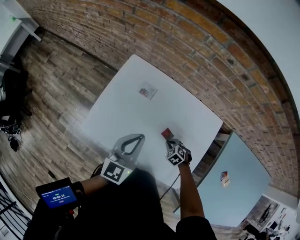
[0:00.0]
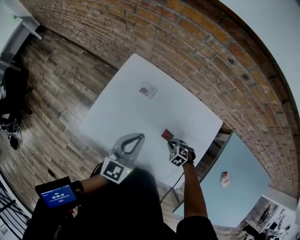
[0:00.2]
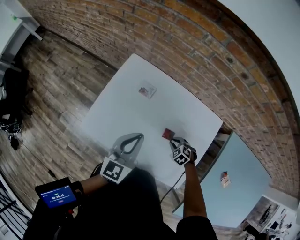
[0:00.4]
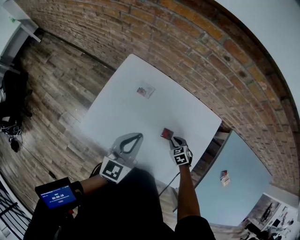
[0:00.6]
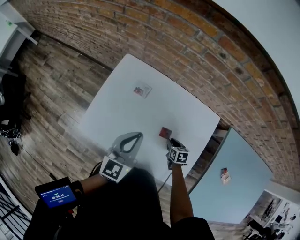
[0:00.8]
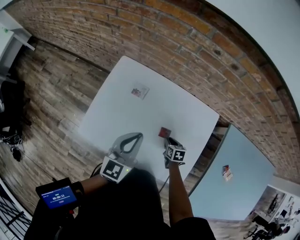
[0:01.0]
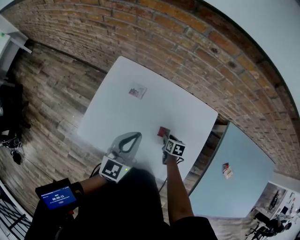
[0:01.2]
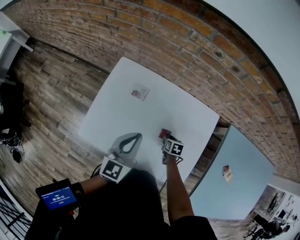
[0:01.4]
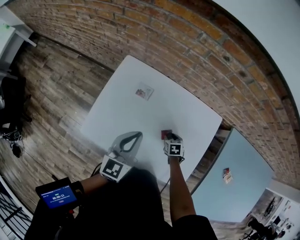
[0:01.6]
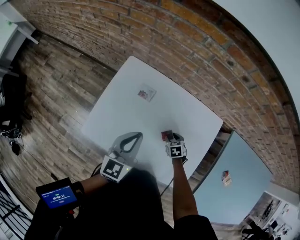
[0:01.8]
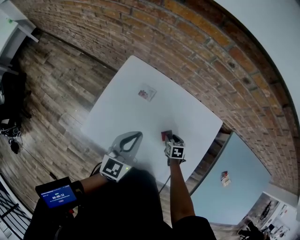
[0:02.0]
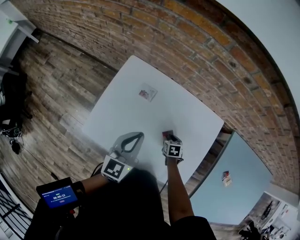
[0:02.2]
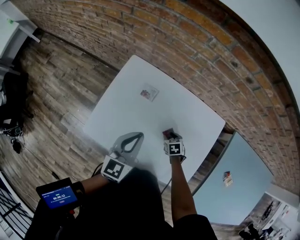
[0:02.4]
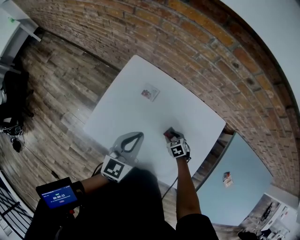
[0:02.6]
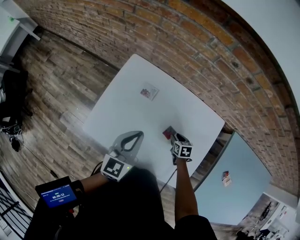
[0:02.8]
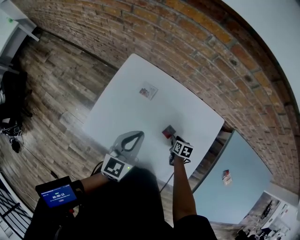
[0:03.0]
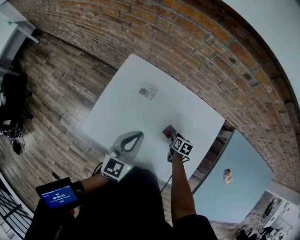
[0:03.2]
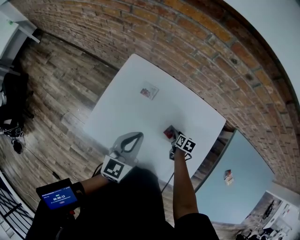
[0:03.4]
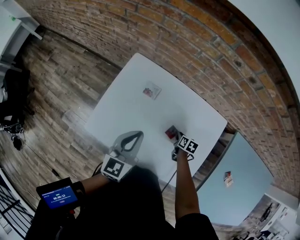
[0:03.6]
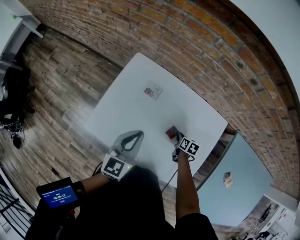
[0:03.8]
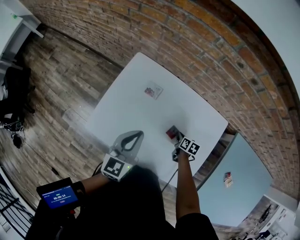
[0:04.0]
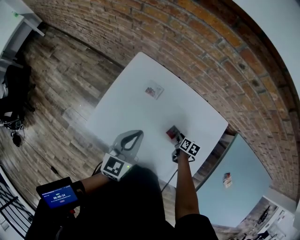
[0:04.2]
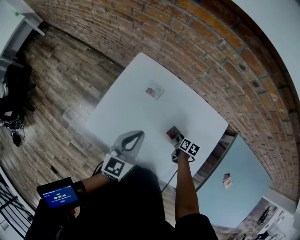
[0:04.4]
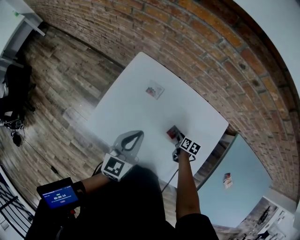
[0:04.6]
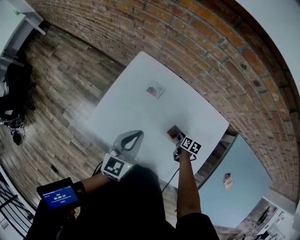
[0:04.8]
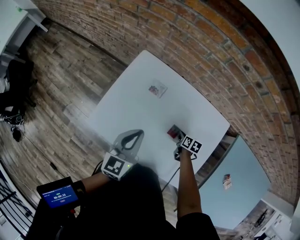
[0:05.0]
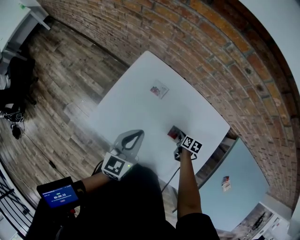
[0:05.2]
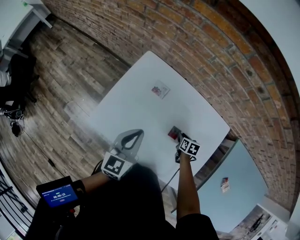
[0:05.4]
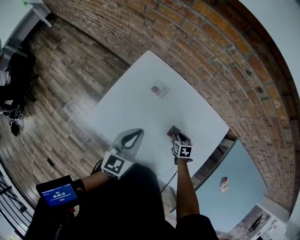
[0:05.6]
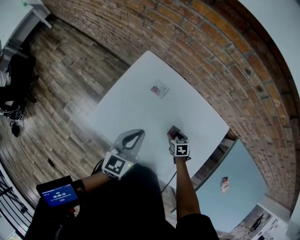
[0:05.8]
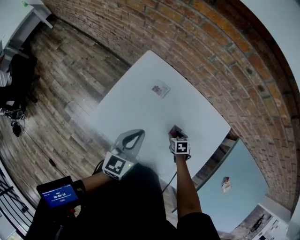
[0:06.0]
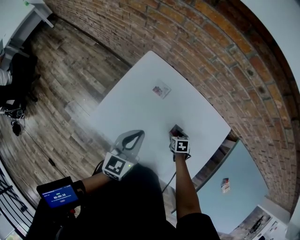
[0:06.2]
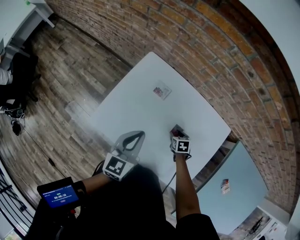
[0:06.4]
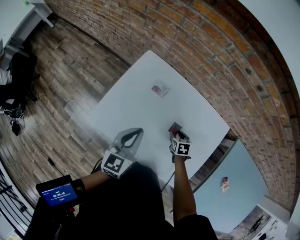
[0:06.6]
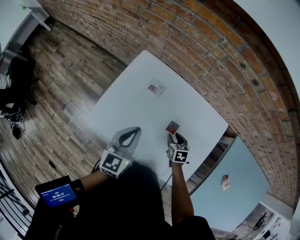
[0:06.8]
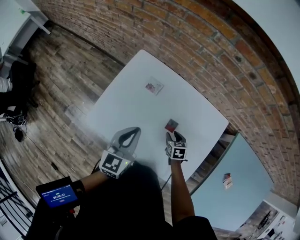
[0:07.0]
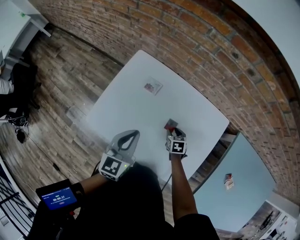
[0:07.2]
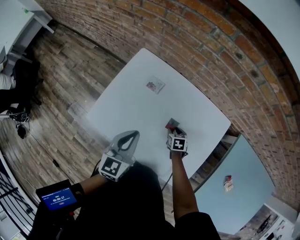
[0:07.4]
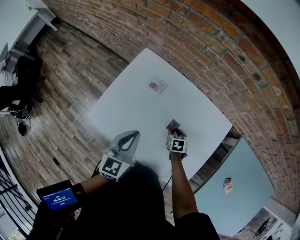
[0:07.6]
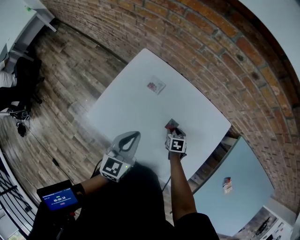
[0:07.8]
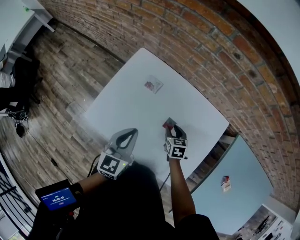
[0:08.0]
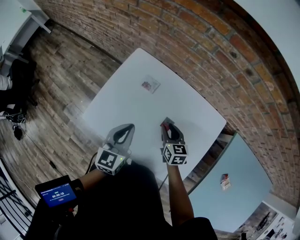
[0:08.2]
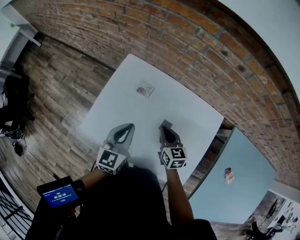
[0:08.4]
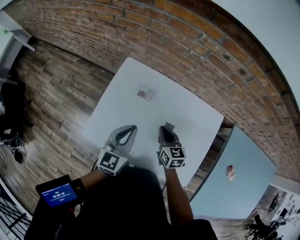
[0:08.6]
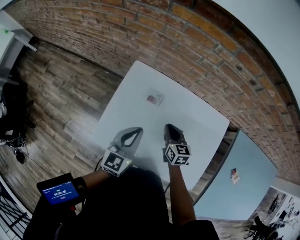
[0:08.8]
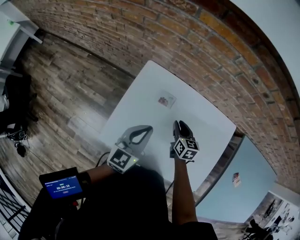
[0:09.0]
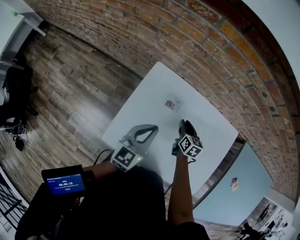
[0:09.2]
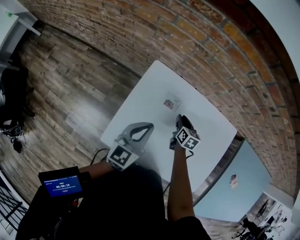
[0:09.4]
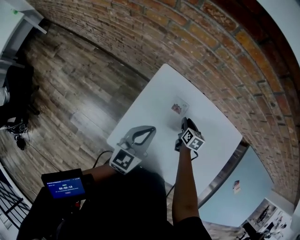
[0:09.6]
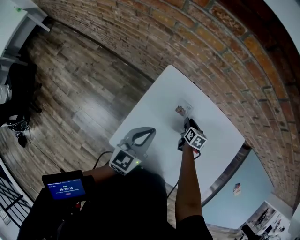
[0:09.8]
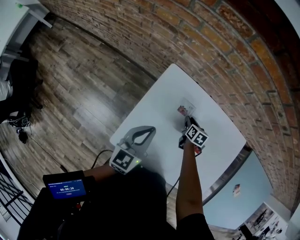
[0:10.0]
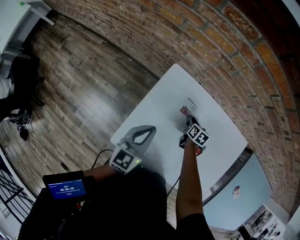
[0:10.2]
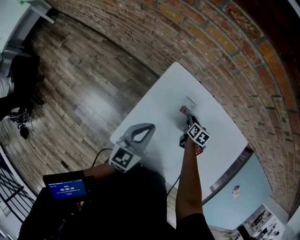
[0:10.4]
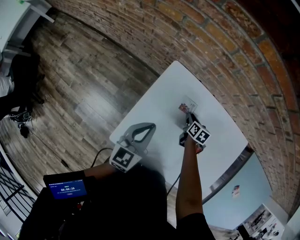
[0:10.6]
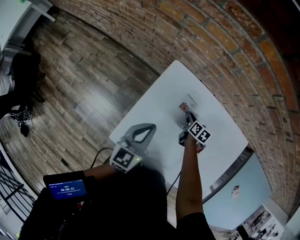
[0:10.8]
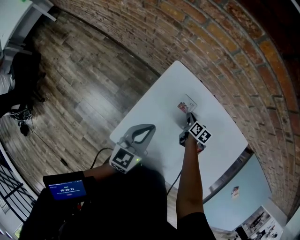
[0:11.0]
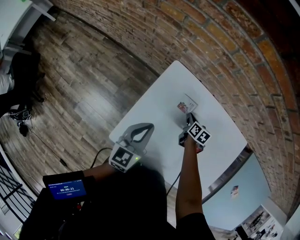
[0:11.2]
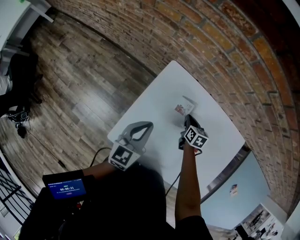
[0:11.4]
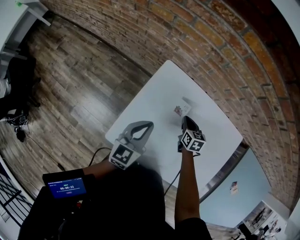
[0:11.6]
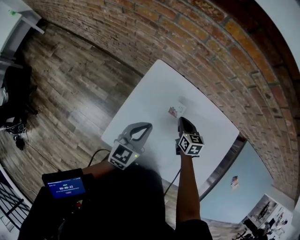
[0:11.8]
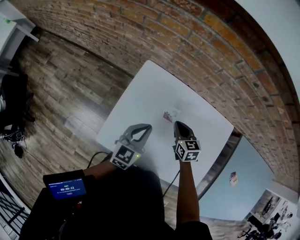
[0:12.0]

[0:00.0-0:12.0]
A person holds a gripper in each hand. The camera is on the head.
0:00.0 to 0:01.6: The right gripper shifts by about 5 cm, rotates around the line of its fingers by some 50 degrees, clockwise from behind, and opens its fingers.
0:01.6 to 0:03.0: The right gripper rotates roughly 20 degrees.
0:03.0 to 0:04.4: The grippers stay close to where they were, moving slightly.
0:04.4 to 0:06.0: The right gripper moves to the left, roughly 5 cm, turns by roughly 40 degrees, and opens its fingers.
0:06.0 to 0:07.6: There are only small adjustments of the grippers.
0:07.6 to 0:09.0: The left gripper heads forward and to the left, covering about 10 cm; the right gripper travels upward, forward and to the left by approximately 20 cm, swivels some 30 degrees, and closes, then opens again.
0:09.0 to 0:10.4: The right gripper shifts approximately 15 cm downward and forward, and swivels approximately 20 degrees; the left gripper goes approximately 10 cm to the left.
0:10.4 to 0:12.0: The left gripper travels to the right by roughly 10 cm. The right gripper shifts approximately 15 cm upward and backward, changes its angle by about 30 degrees, and closes up.

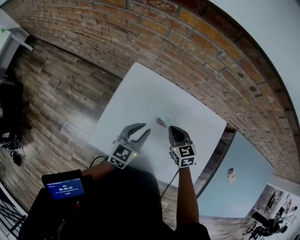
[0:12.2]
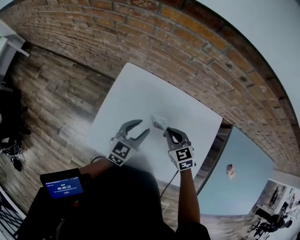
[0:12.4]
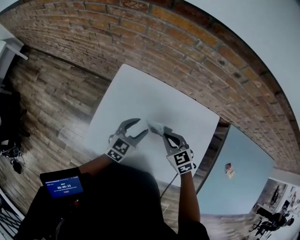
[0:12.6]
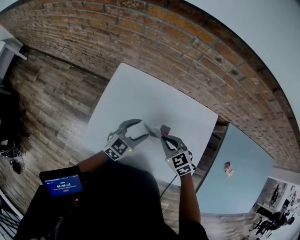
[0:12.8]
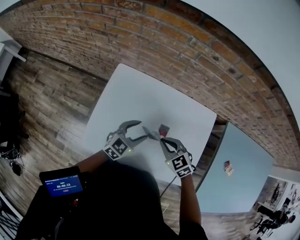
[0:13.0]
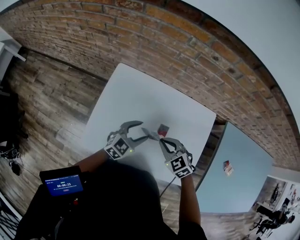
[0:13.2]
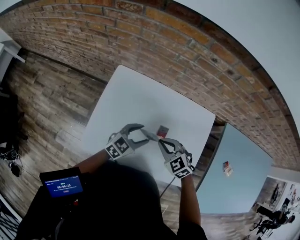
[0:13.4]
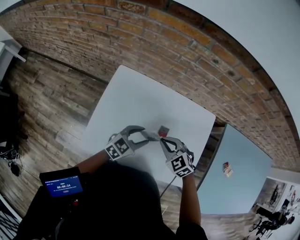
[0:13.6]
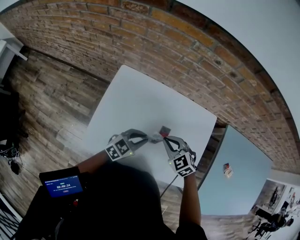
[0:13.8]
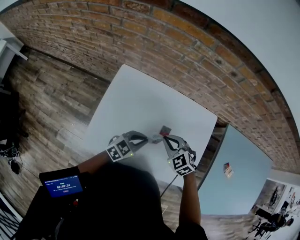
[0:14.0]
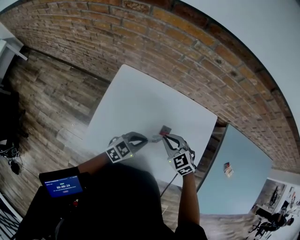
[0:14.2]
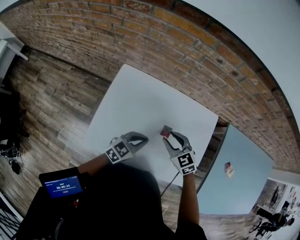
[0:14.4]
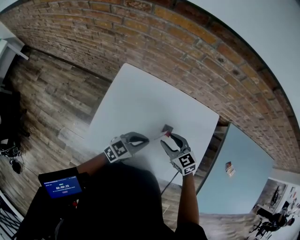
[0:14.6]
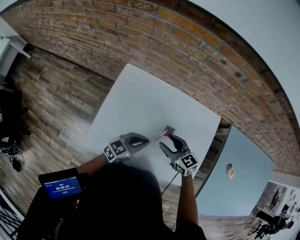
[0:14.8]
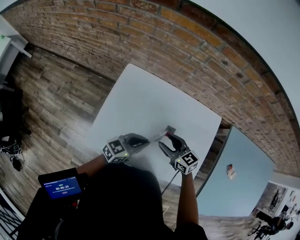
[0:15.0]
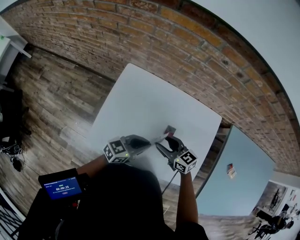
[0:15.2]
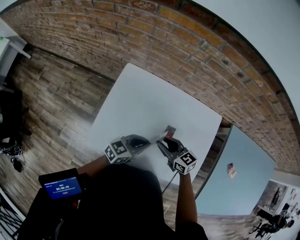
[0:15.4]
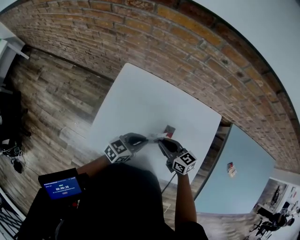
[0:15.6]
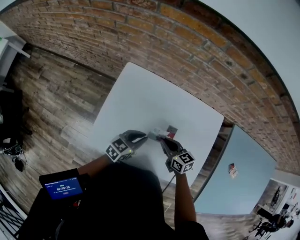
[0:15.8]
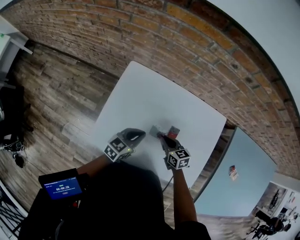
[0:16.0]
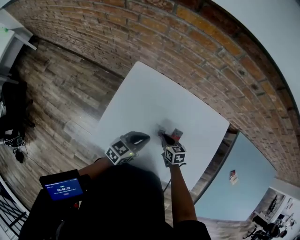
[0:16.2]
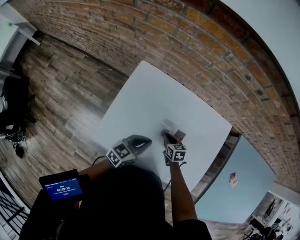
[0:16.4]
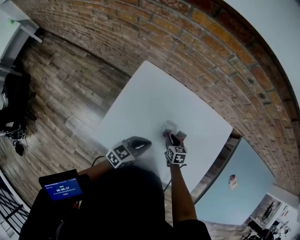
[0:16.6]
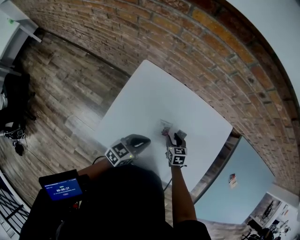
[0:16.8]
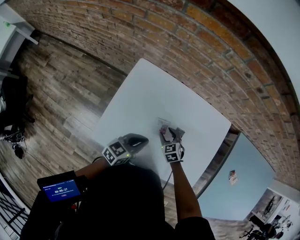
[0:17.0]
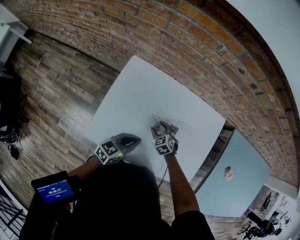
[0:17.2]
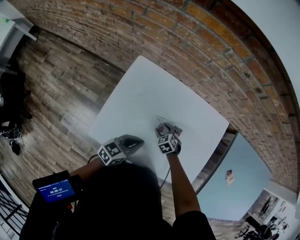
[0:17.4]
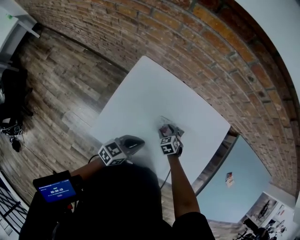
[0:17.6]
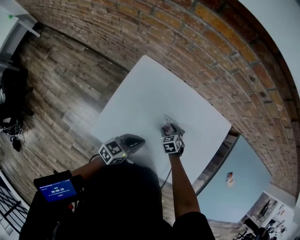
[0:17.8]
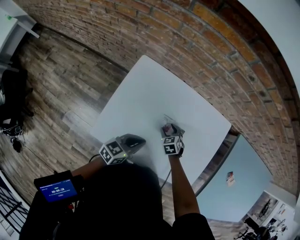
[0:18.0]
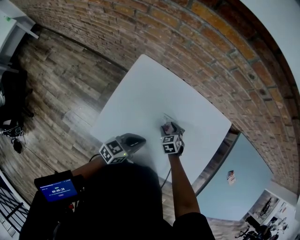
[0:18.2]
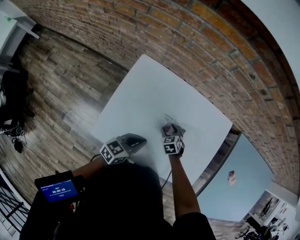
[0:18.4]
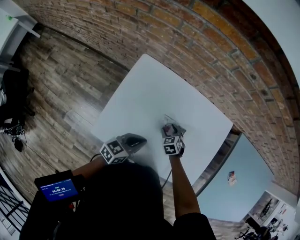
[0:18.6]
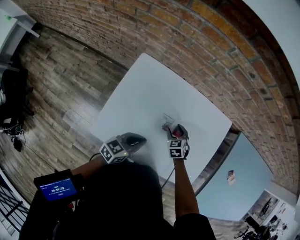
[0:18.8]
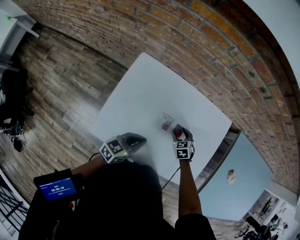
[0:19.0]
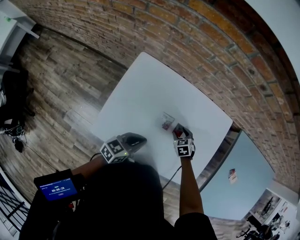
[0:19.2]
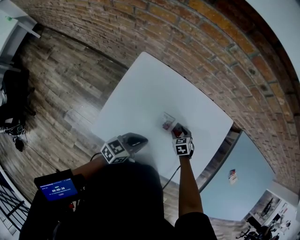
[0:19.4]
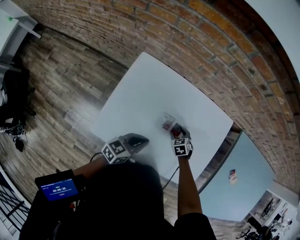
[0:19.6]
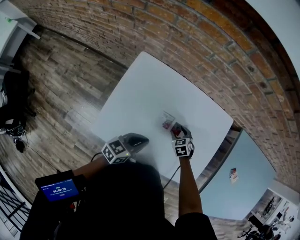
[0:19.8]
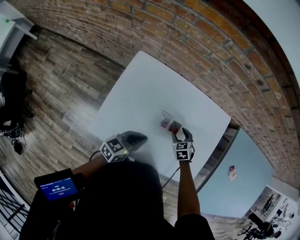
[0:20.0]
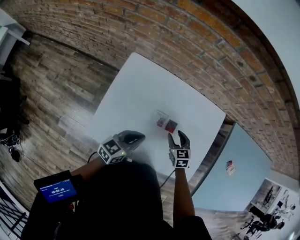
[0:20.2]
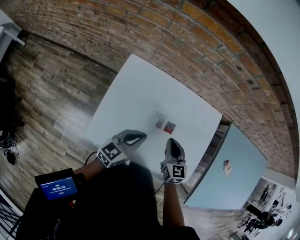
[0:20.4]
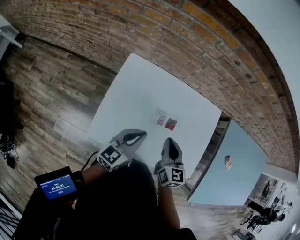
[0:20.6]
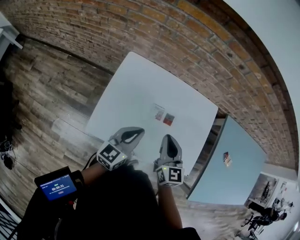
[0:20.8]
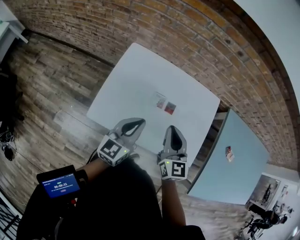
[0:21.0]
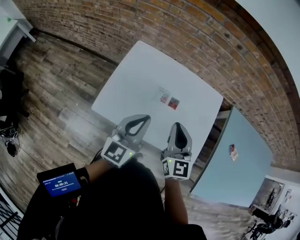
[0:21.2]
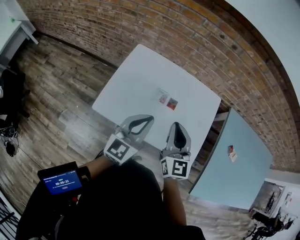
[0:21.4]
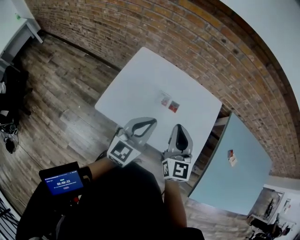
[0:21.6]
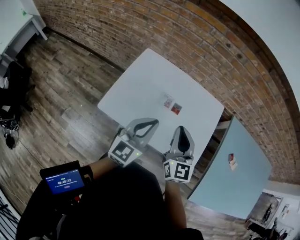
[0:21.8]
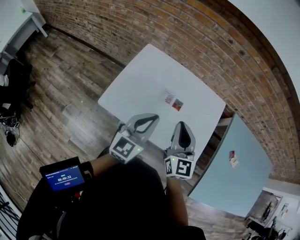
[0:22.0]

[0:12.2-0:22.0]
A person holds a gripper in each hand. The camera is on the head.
0:12.2 to 0:13.6: The left gripper shifts roughly 10 cm to the right, swivels roughly 30 degrees, and opens. The right gripper shifts approximately 10 cm backward, and swivels about 30 degrees.
0:13.6 to 0:15.0: The right gripper swivels some 30 degrees, and opens its fingers. Meanwhile the left gripper closes up.
0:15.0 to 0:16.4: The right gripper is displaced downward by about 15 cm, rotates some 30 degrees, and closes its fingers; the left gripper ends up about 5 cm from where it was.
0:16.4 to 0:17.8: The right gripper turns by some 30 degrees, and opens.
0:17.8 to 0:19.2: The right gripper shifts about 10 cm to the right.
0:19.2 to 0:20.6: The right gripper travels upward by some 25 cm, tilts its fingers approximately 40 degrees upward, and closes its fingers, while the left gripper goes roughly 10 cm upward, and rotates approximately 20 degrees.
0:20.6 to 0:22.0: The left gripper moves backward, upward and to the right, roughly 15 cm, and turns by some 30 degrees, while the right gripper goes some 15 cm backward and upward, and swivels some 20 degrees.

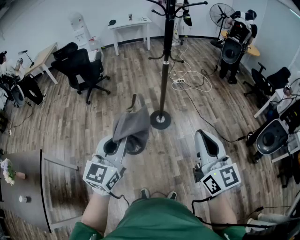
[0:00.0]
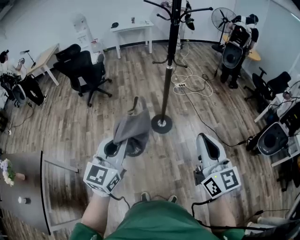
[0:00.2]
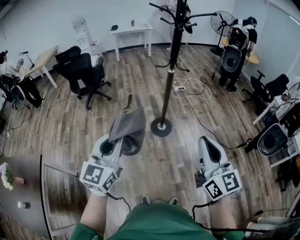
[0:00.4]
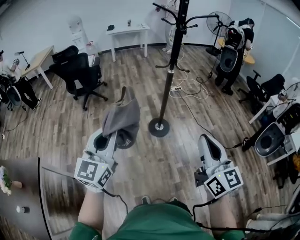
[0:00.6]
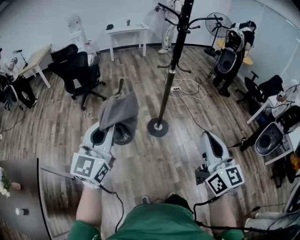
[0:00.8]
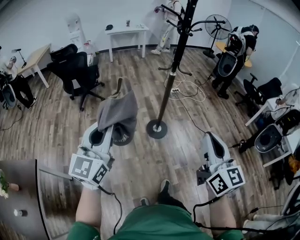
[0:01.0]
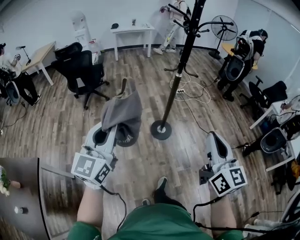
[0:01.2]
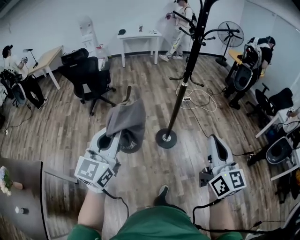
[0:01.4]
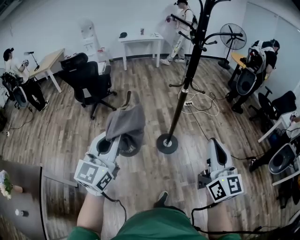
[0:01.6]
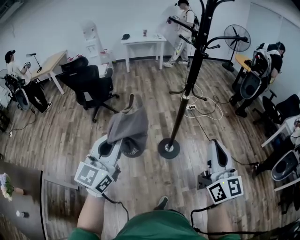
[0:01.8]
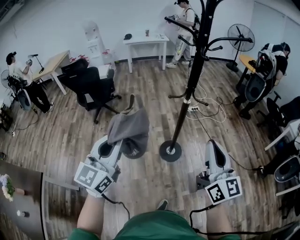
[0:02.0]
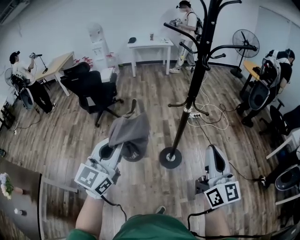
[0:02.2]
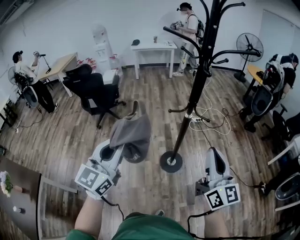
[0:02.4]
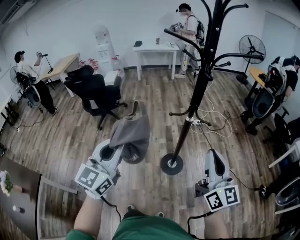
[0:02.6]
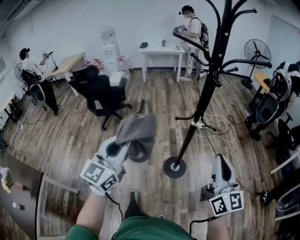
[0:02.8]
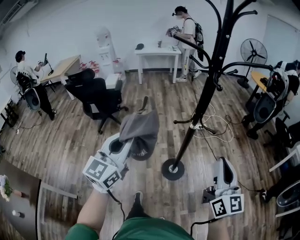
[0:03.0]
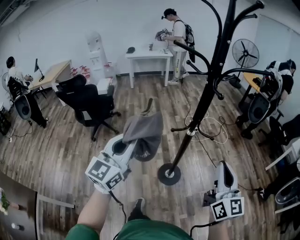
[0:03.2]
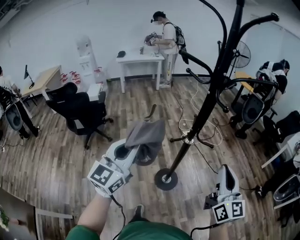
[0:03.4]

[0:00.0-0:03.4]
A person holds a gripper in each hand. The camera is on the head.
0:00.0 to 0:01.6: The left gripper moves to the left and forward, roughly 20 cm. Meanwhile the right gripper heads forward and to the left, covering about 15 cm.
0:01.6 to 0:03.4: The grippers both shift forward by some 30 cm.
